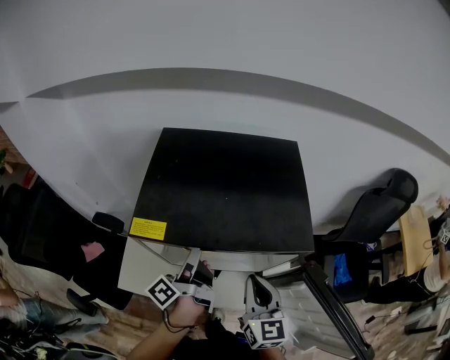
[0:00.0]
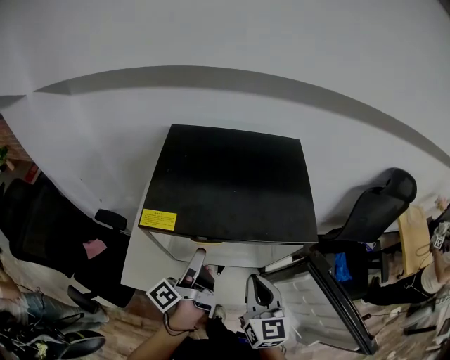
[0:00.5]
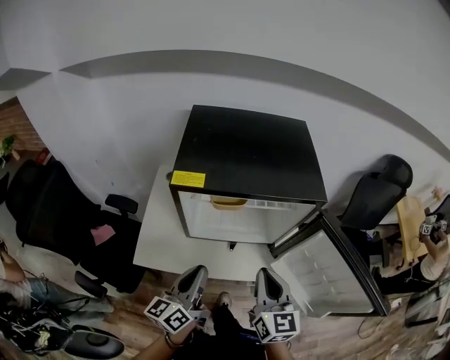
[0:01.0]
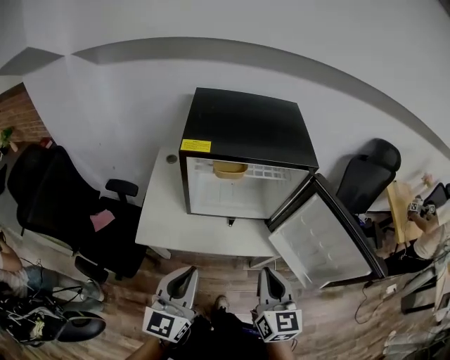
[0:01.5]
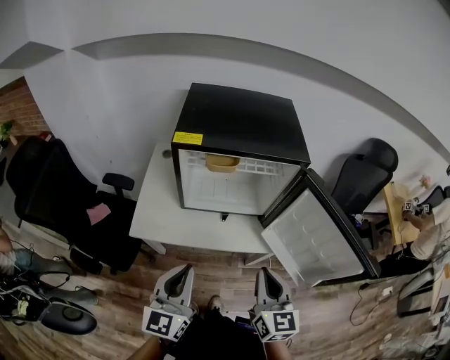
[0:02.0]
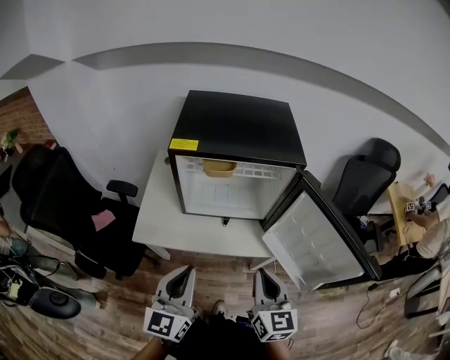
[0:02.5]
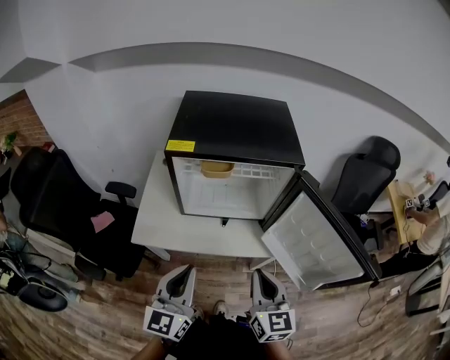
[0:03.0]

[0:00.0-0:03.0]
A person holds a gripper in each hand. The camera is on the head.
0:00.0 to 0:01.5: Both grippers move backward, approximately 30 cm. The left gripper rolls clockwise, seen from behind, by approximately 80 degrees, and closes.
0:01.5 to 0:03.0: The grippers move only a little.

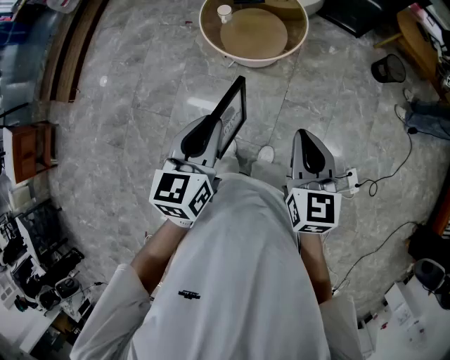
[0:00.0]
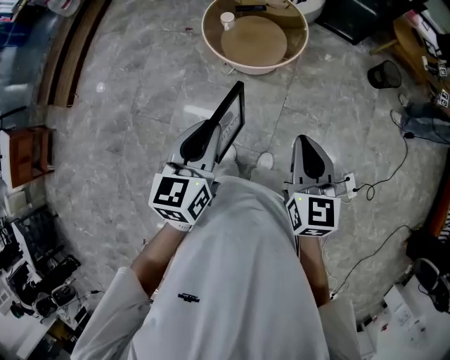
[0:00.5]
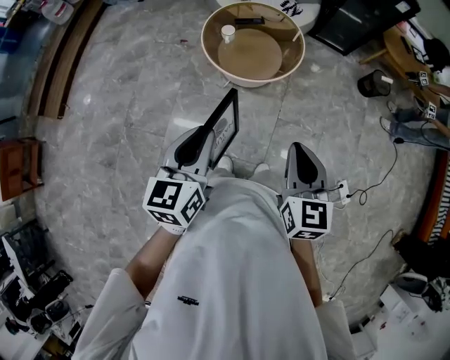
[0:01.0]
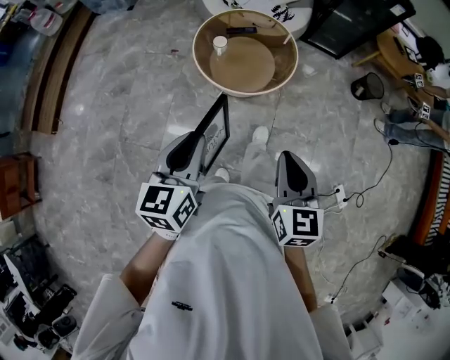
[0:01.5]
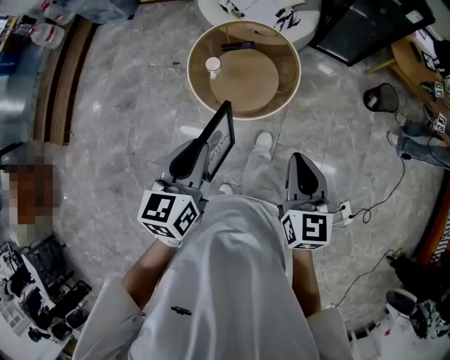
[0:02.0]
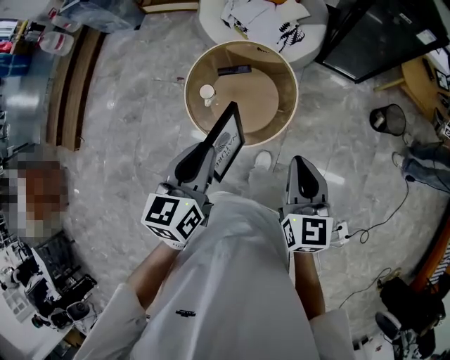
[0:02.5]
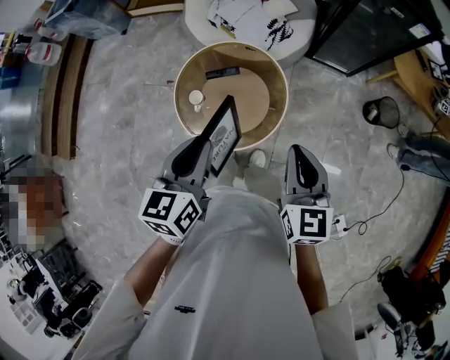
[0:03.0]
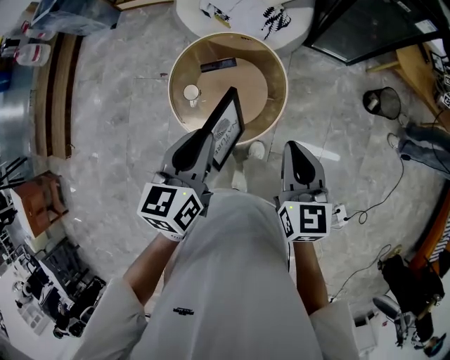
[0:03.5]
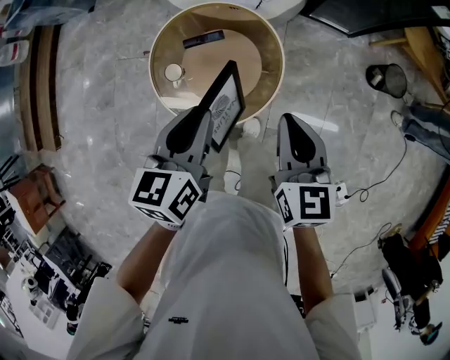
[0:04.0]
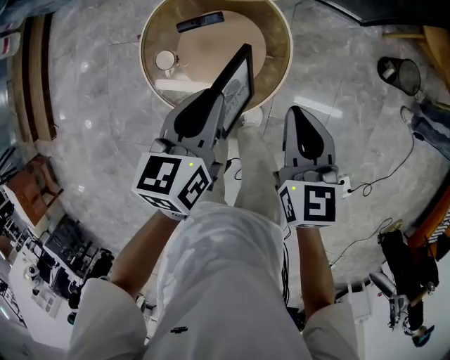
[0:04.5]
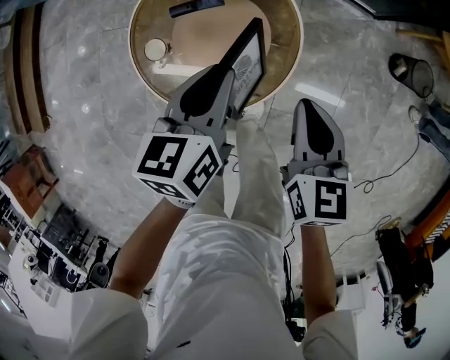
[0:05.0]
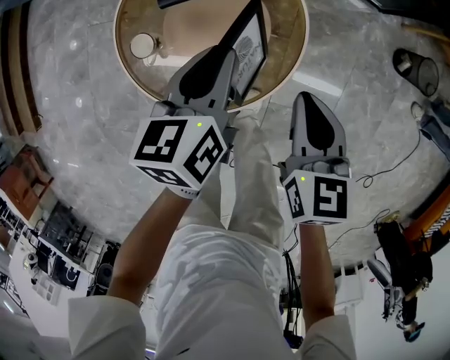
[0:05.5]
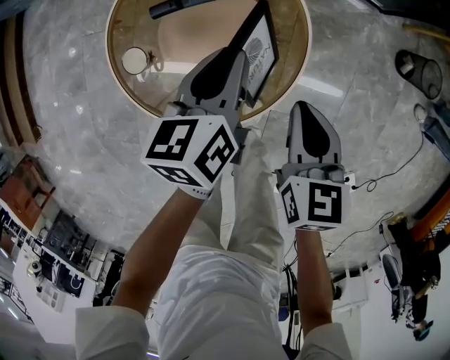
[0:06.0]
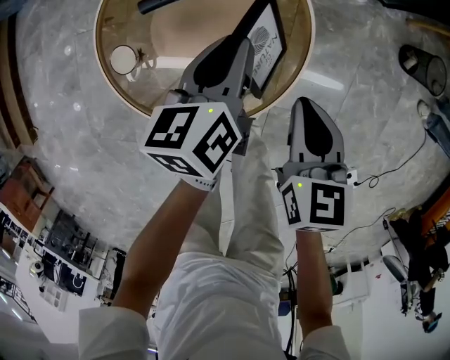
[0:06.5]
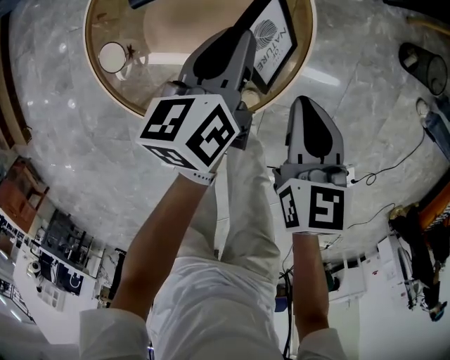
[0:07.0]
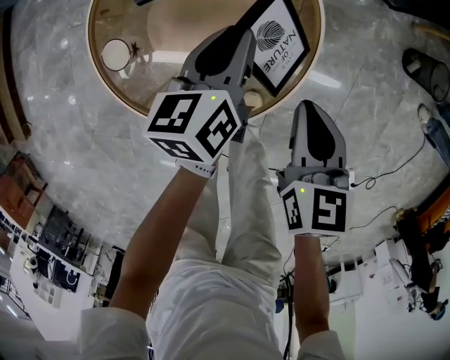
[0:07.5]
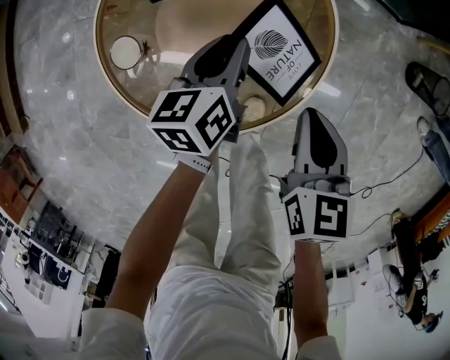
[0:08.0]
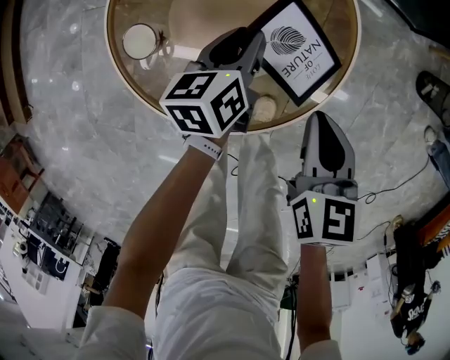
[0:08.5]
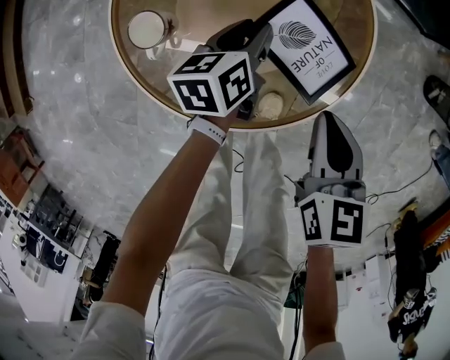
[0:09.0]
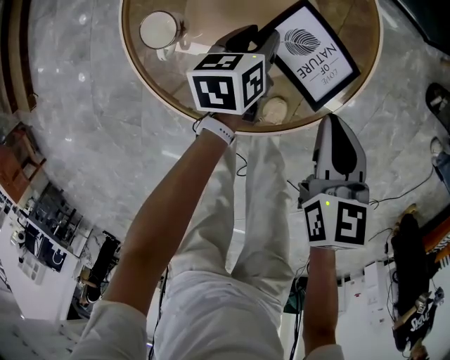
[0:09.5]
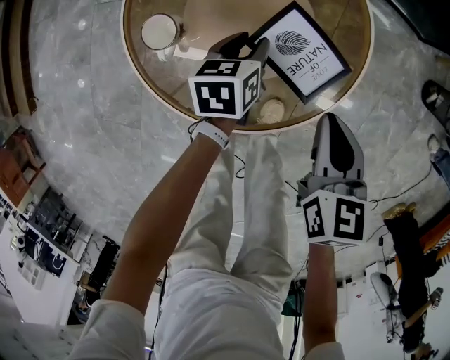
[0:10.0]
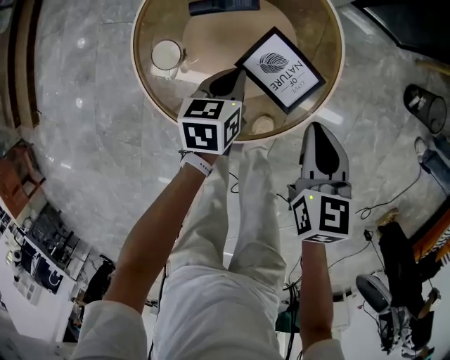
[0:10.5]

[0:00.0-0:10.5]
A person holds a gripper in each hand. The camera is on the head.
0:00.0 to 0:02.0: Both grippers move forward, some 20 cm.
0:02.0 to 0:04.0: The left gripper travels forward and to the right by approximately 30 cm. Meanwhile the right gripper shifts roughly 25 cm forward.
0:04.0 to 0:06.5: The two grippers go roughly 30 cm downward.
0:06.5 to 0:08.5: The left gripper heads downward and to the left, covering about 15 cm; the right gripper is displaced downward by approximately 5 cm.
0:08.5 to 0:10.5: The left gripper ends up about 5 cm from where it was, and closes its fingers, while the right gripper goes approximately 5 cm upward.

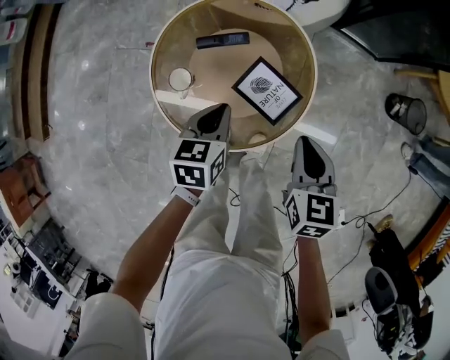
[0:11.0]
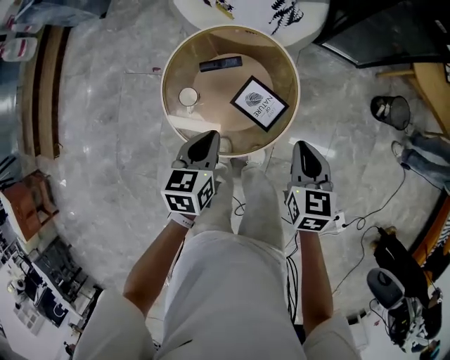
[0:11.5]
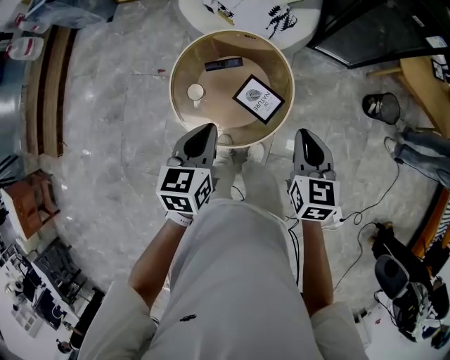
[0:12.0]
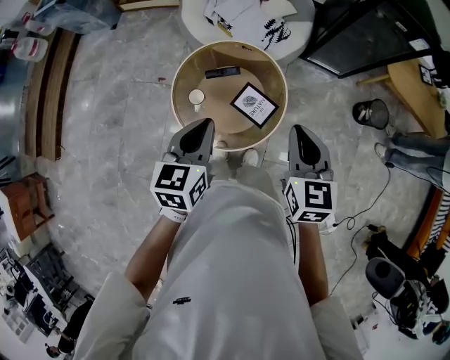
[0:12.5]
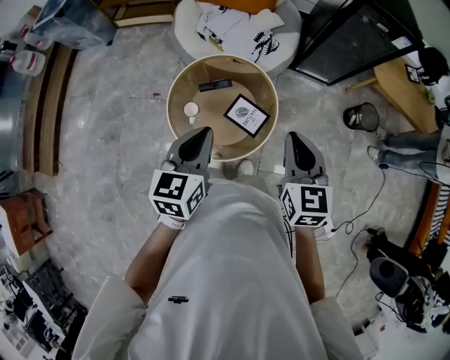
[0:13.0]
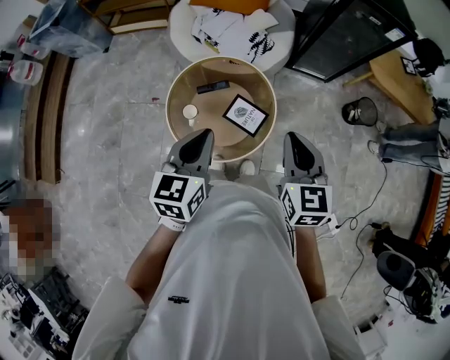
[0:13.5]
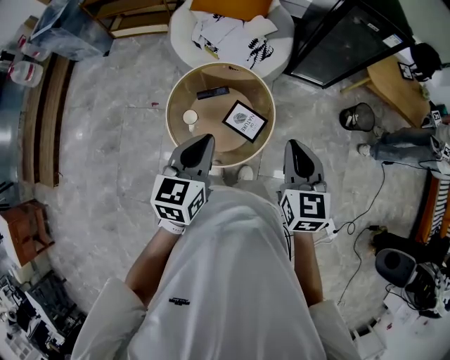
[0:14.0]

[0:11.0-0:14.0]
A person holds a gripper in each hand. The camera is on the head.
0:11.0 to 0:12.5: Both grippers move upward, roughly 30 cm.
0:12.5 to 0:14.0: The right gripper heads backward, covering some 5 cm. Meanwhile the left gripper ends up some 5 cm from where it was.

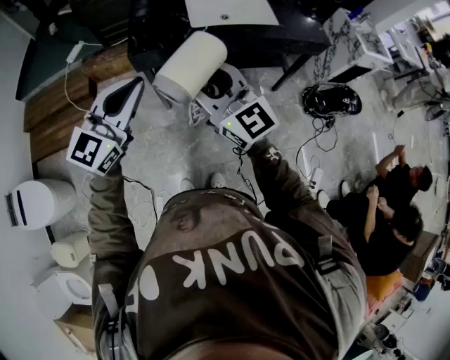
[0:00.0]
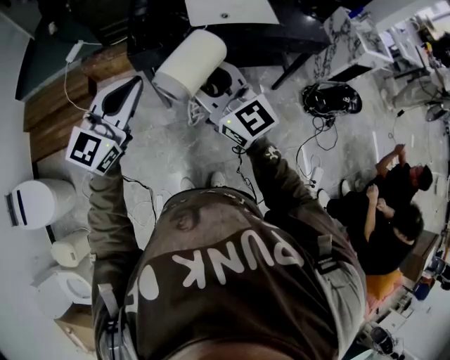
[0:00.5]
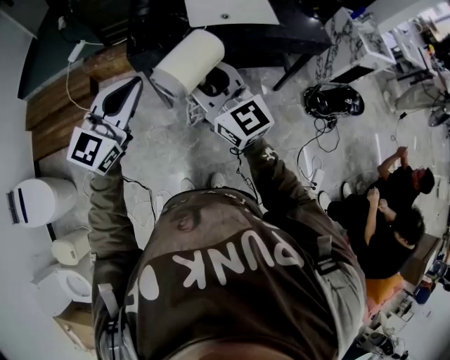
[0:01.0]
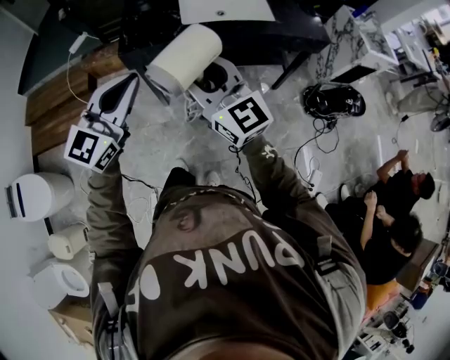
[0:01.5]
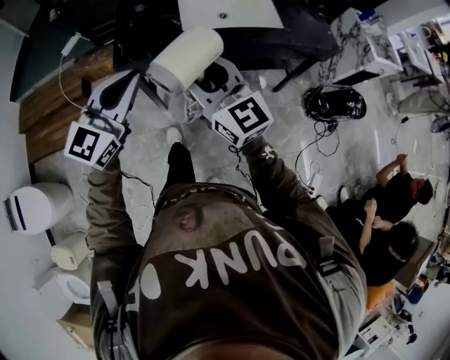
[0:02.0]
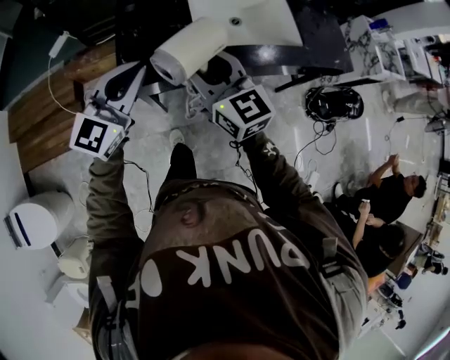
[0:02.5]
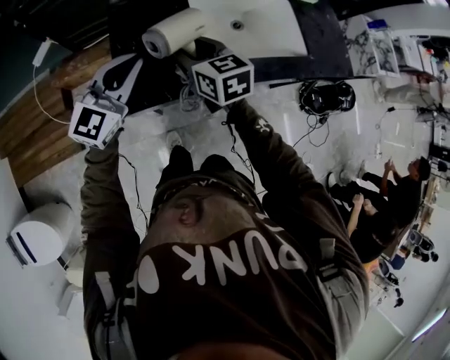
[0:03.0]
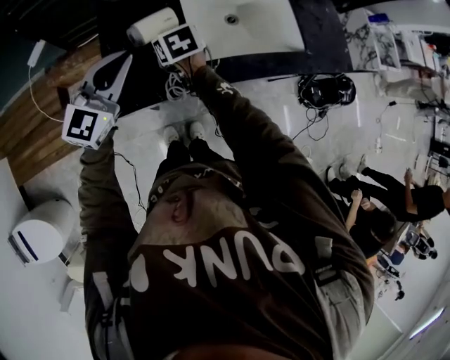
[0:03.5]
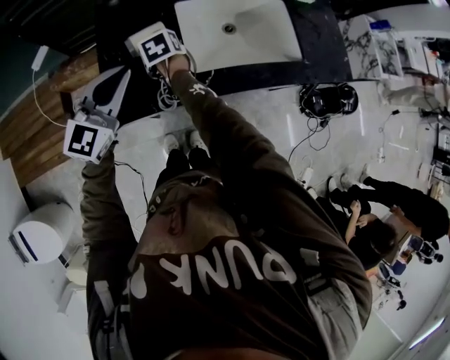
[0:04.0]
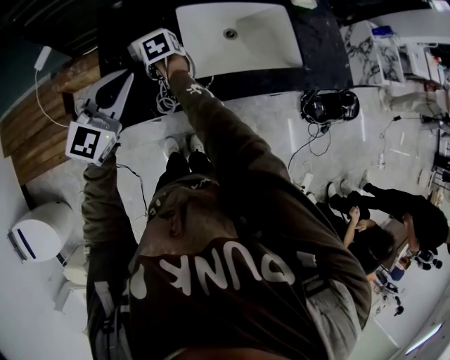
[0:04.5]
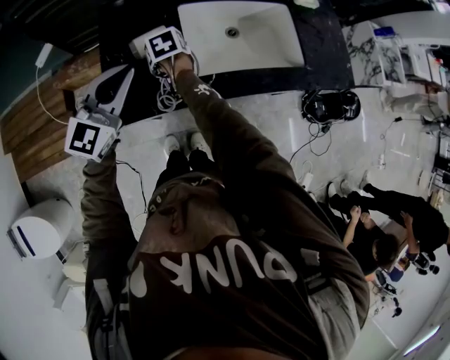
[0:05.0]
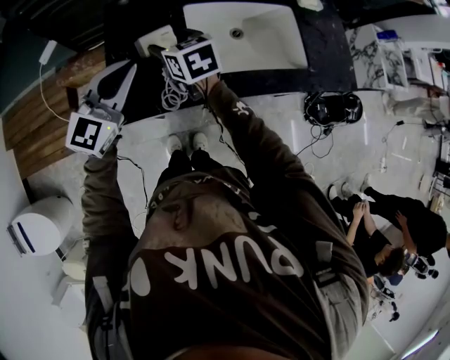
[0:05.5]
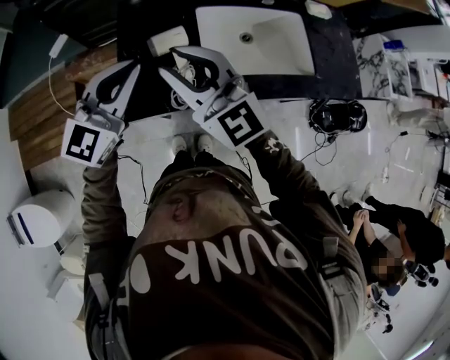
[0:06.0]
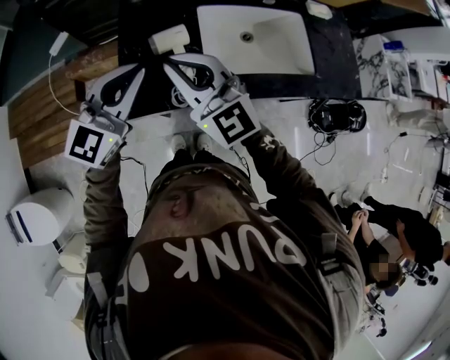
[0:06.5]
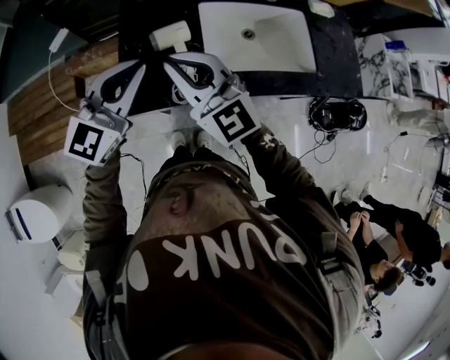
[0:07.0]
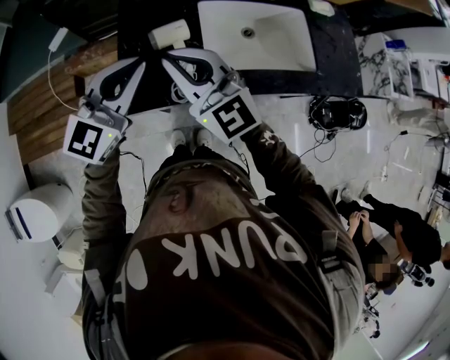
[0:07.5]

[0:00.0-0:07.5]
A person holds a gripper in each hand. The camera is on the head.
0:00.0 to 0:02.0: The two grippers go approximately 15 cm forward.
0:02.0 to 0:04.0: The right gripper heads forward and downward, covering approximately 50 cm, and points its fingers about 70 degrees further downward, while the left gripper travels forward by about 30 cm.
0:04.0 to 0:05.5: The right gripper shifts approximately 15 cm upward, swivels roughly 30 degrees, and opens.
0:05.5 to 0:07.5: The right gripper shifts about 20 cm upward and backward, tips its fingers upward by roughly 30 degrees, and closes up; the left gripper shifts by roughly 5 cm.

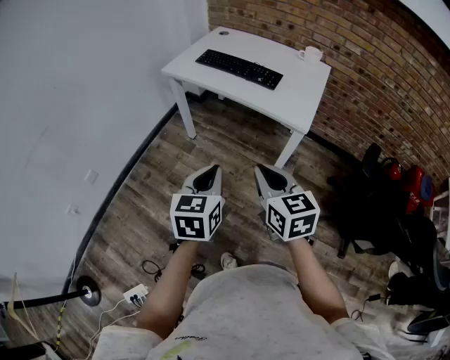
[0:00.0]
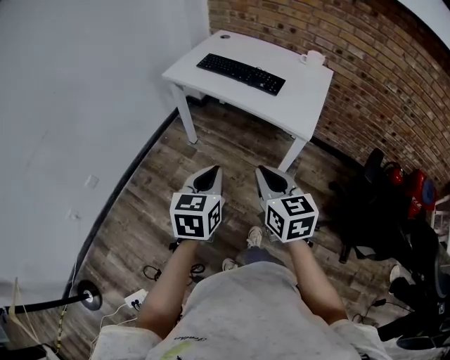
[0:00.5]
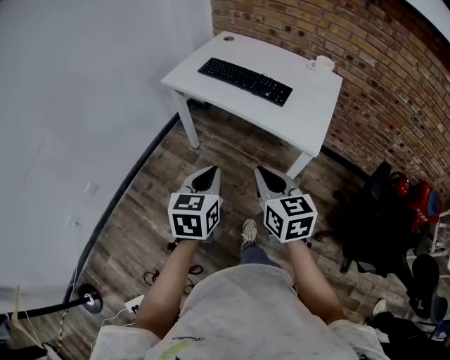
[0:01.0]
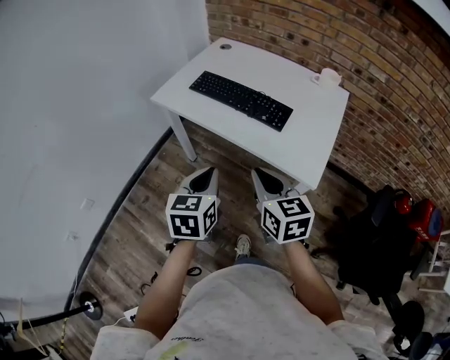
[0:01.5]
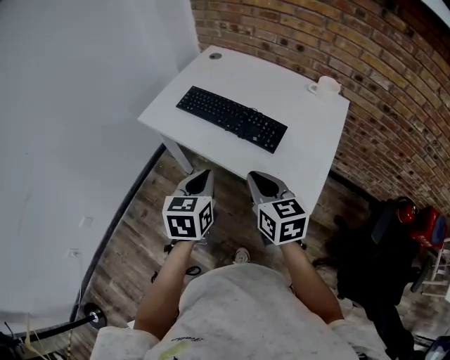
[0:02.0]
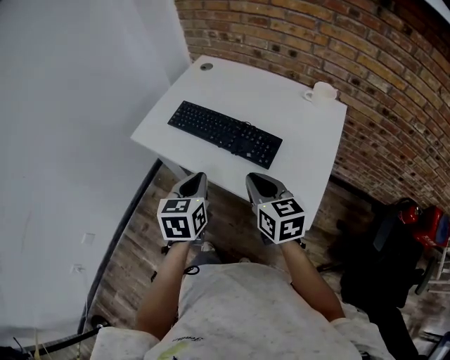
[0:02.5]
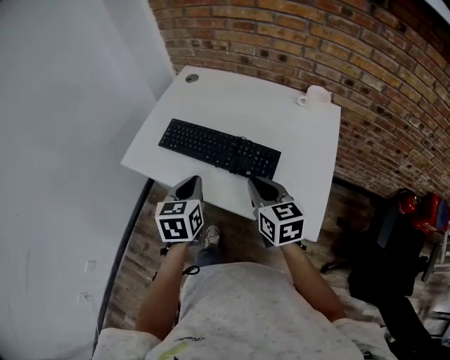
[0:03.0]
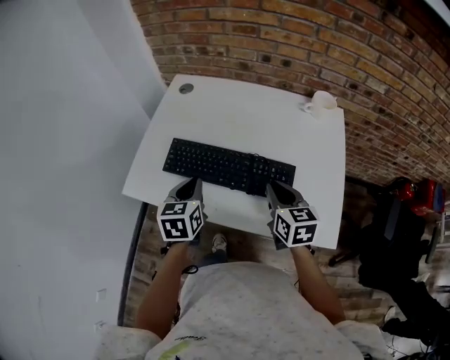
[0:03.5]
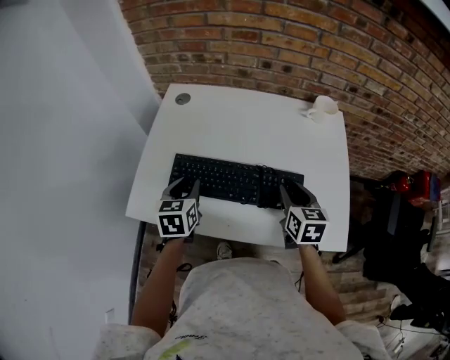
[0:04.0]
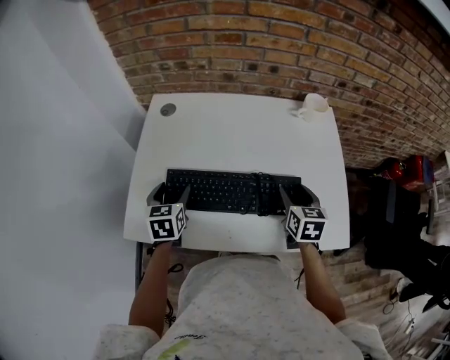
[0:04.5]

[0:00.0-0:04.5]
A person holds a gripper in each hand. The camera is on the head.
0:00.0 to 0:02.0: The grippers both shift forward by some 35 cm.
0:02.0 to 0:04.5: The left gripper moves roughly 40 cm, rotates about 20 degrees, and opens up, while the right gripper moves about 30 cm, rotates about 50 degrees, and opens up.
